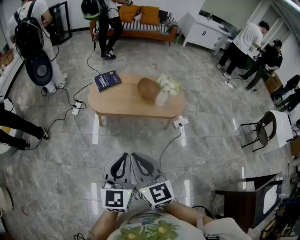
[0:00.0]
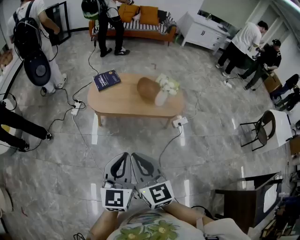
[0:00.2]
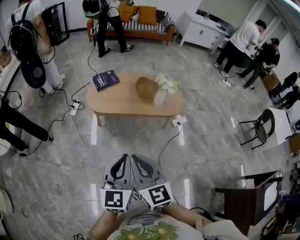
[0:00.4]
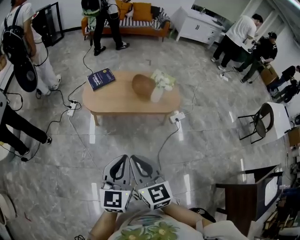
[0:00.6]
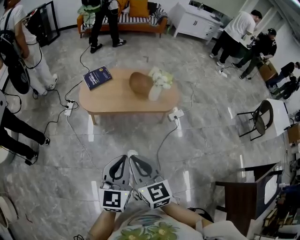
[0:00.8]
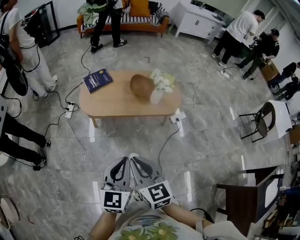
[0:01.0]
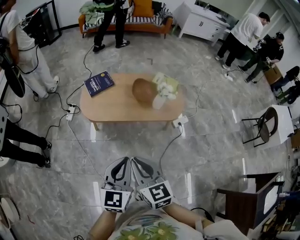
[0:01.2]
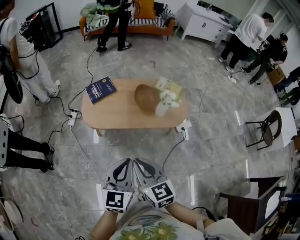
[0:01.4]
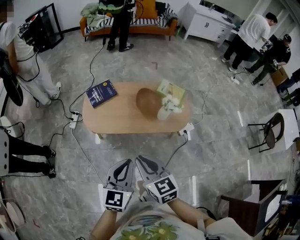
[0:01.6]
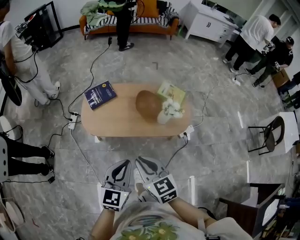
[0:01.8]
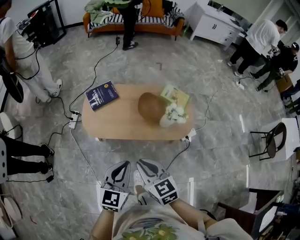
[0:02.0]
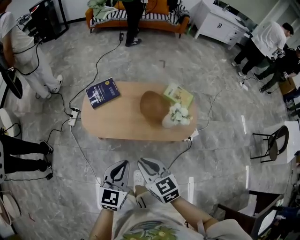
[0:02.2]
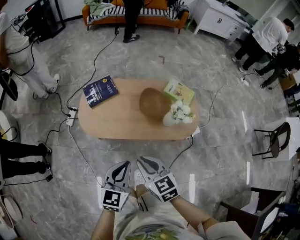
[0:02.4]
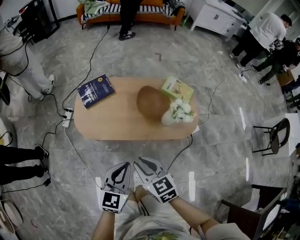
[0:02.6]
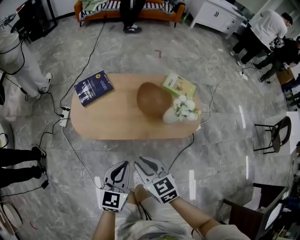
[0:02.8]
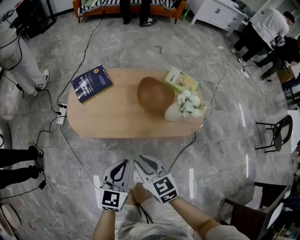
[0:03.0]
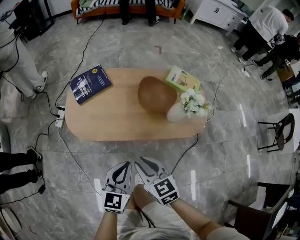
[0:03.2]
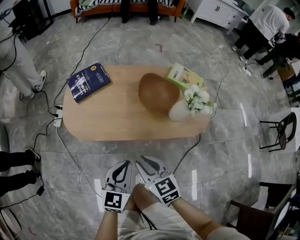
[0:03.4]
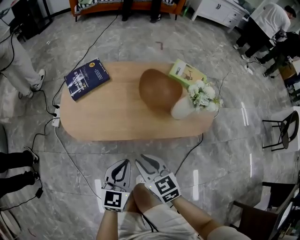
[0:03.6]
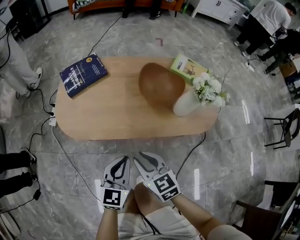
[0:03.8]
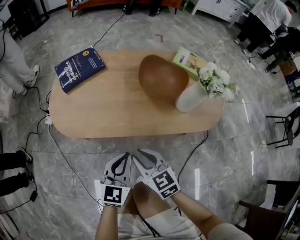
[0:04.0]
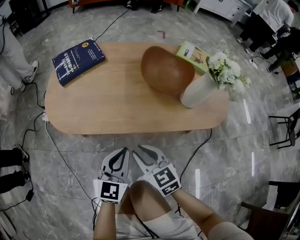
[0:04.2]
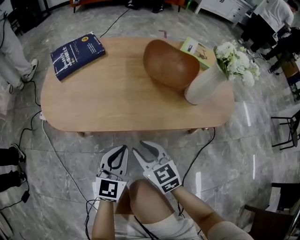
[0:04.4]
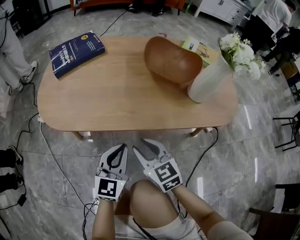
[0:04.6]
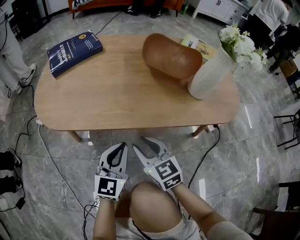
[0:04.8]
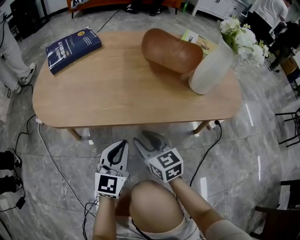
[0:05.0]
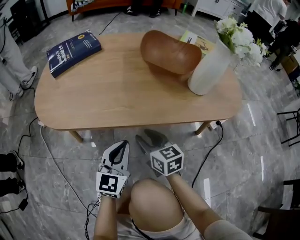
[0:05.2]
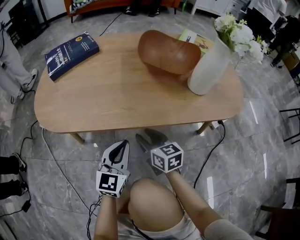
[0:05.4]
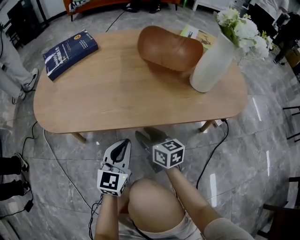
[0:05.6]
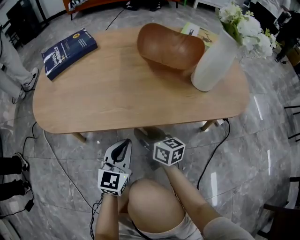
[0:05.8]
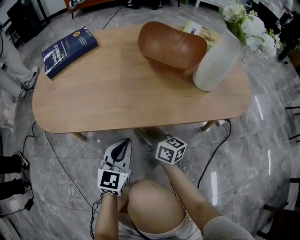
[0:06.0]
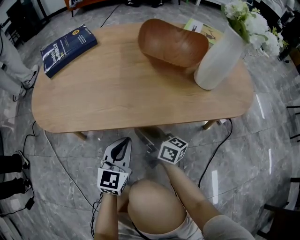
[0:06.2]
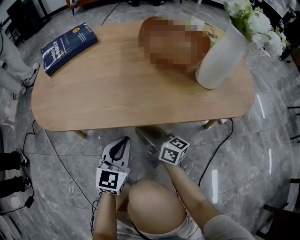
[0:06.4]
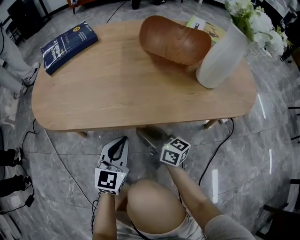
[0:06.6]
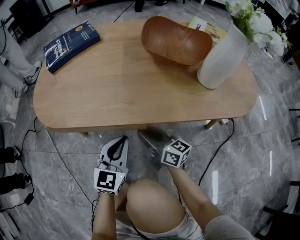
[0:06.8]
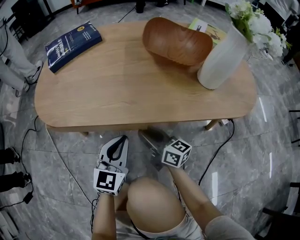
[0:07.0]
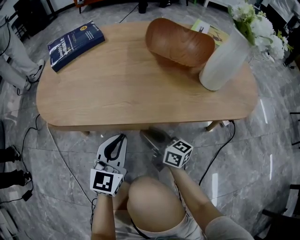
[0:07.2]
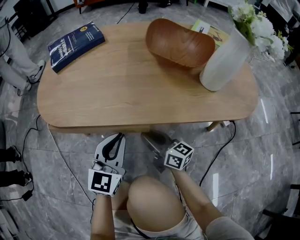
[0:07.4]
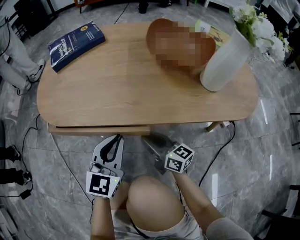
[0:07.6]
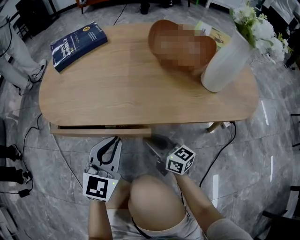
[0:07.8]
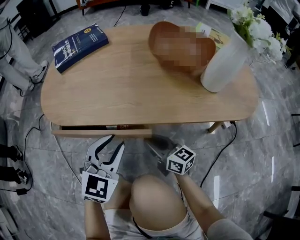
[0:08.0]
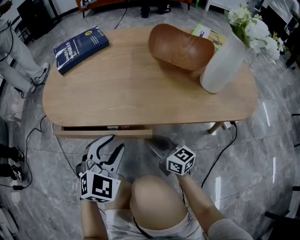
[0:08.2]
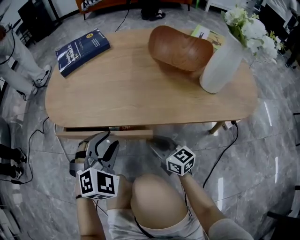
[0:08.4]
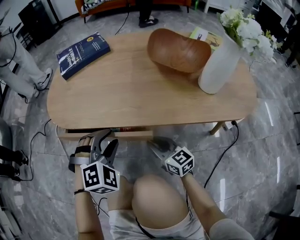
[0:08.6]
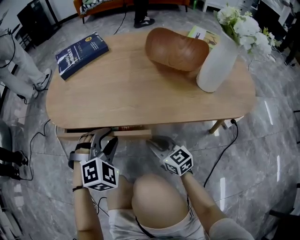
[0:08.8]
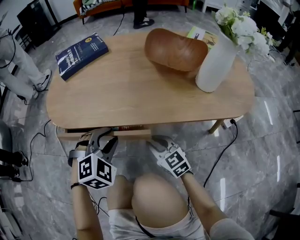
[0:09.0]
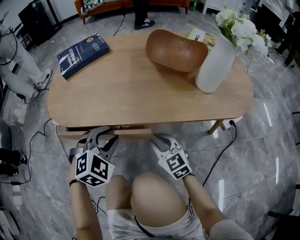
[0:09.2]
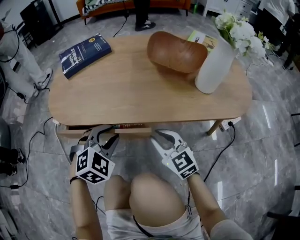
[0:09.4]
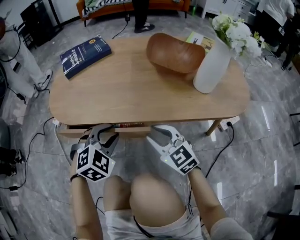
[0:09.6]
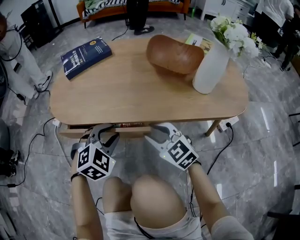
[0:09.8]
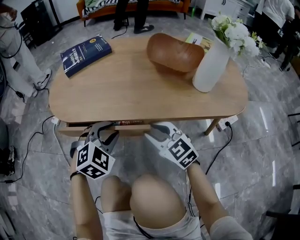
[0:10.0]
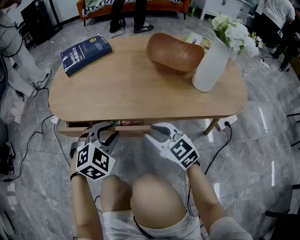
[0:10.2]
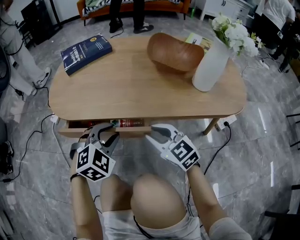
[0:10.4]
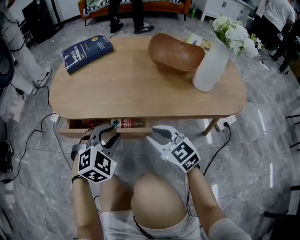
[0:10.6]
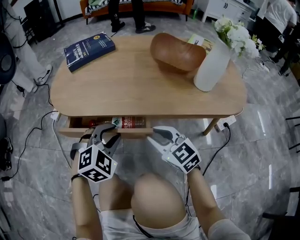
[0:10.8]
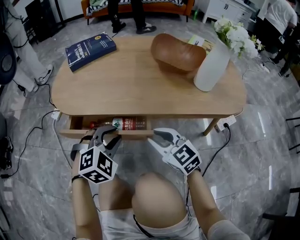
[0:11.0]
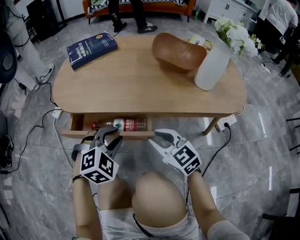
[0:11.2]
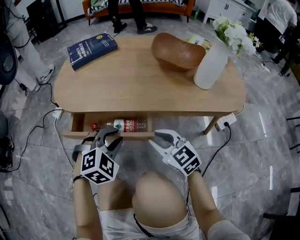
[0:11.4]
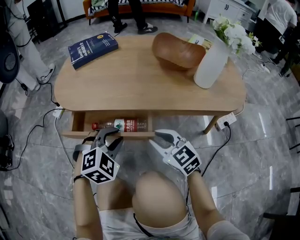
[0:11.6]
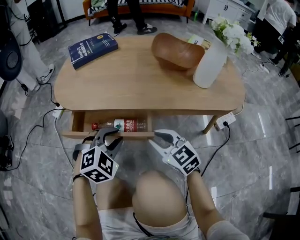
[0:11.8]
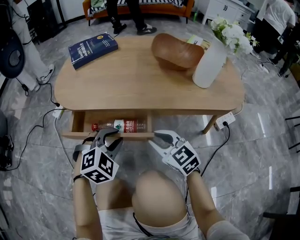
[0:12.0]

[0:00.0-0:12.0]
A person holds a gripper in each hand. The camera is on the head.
0:00.0 to 0:01.6: The left gripper goes approximately 20 cm forward, while the right gripper is displaced forward and downward by roughly 25 cm.
0:01.6 to 0:03.0: Both grippers travel together downward and forward, roughly 25 cm.
0:03.0 to 0:04.4: The grippers both shift downward by roughly 30 cm.
0:04.4 to 0:06.0: The left gripper goes roughly 10 cm downward. The right gripper is displaced downward and forward by roughly 15 cm, and turns by about 40 degrees.
0:06.0 to 0:07.6: The left gripper travels upward by approximately 5 cm.
0:07.6 to 0:09.0: The right gripper changes its angle by approximately 40 degrees, while the left gripper points its fingers some 30 degrees further downward, and opens up.
0:09.0 to 0:10.4: The right gripper moves upward, some 10 cm.
0:10.4 to 0:12.0: The left gripper travels backward by some 5 cm.

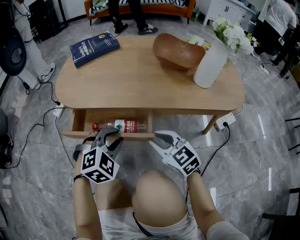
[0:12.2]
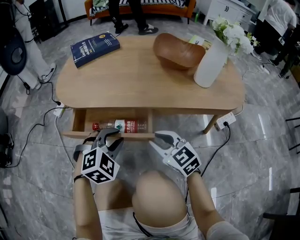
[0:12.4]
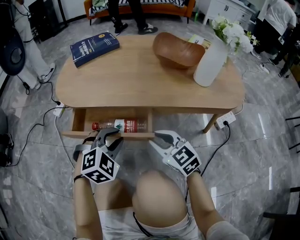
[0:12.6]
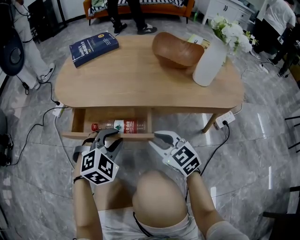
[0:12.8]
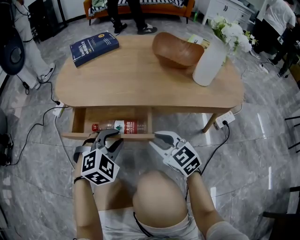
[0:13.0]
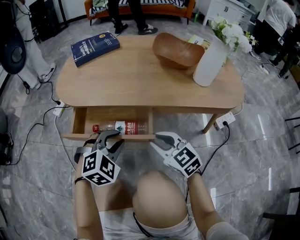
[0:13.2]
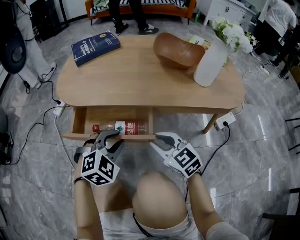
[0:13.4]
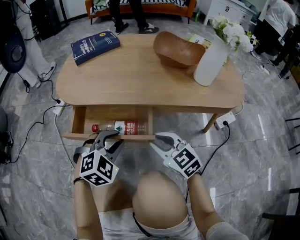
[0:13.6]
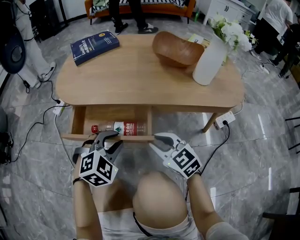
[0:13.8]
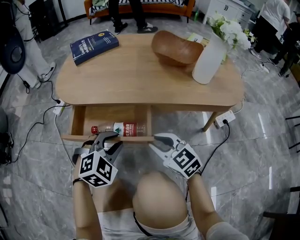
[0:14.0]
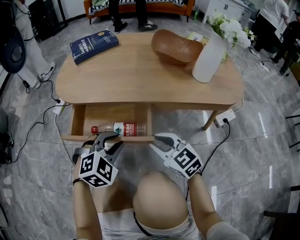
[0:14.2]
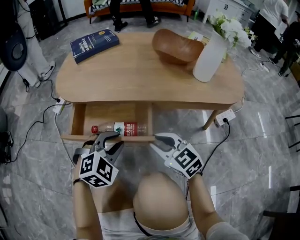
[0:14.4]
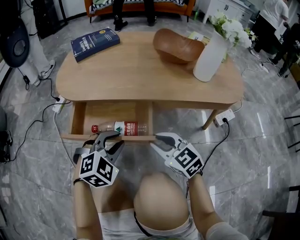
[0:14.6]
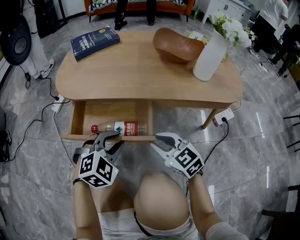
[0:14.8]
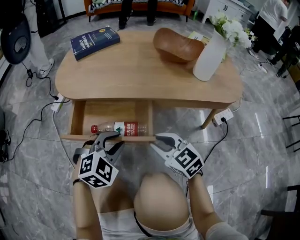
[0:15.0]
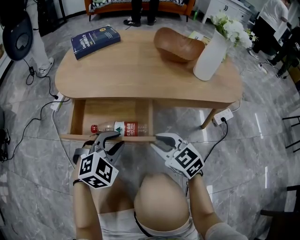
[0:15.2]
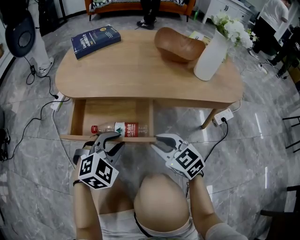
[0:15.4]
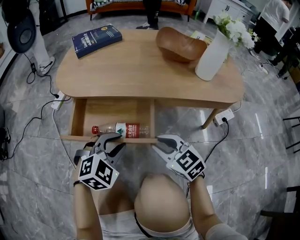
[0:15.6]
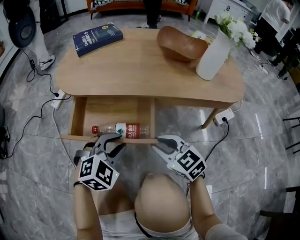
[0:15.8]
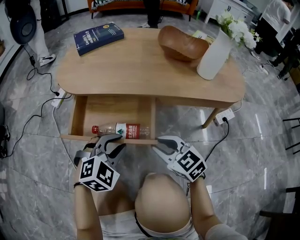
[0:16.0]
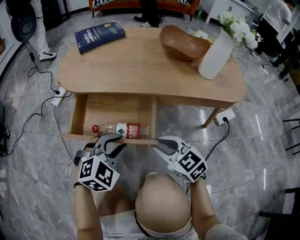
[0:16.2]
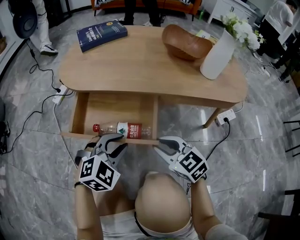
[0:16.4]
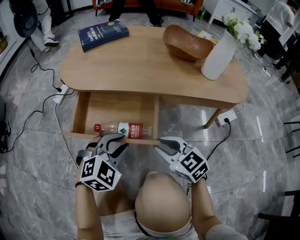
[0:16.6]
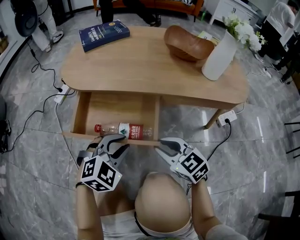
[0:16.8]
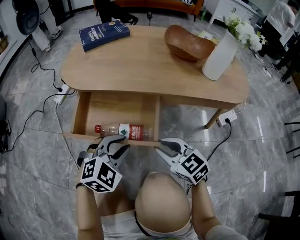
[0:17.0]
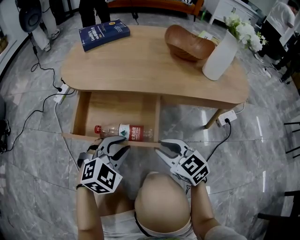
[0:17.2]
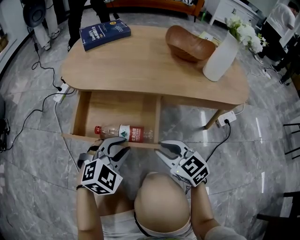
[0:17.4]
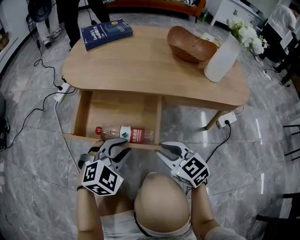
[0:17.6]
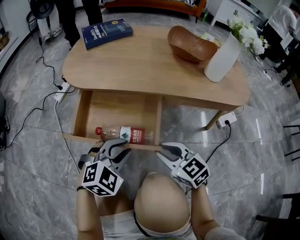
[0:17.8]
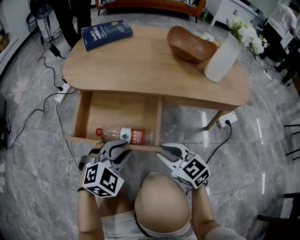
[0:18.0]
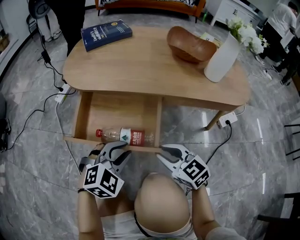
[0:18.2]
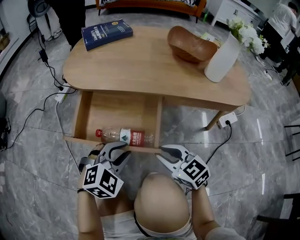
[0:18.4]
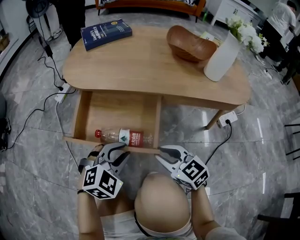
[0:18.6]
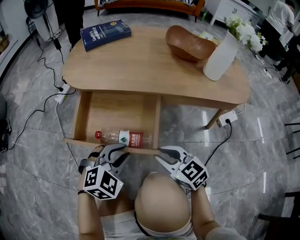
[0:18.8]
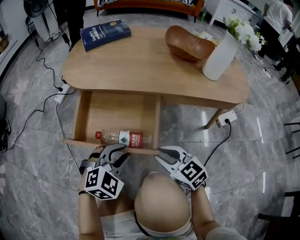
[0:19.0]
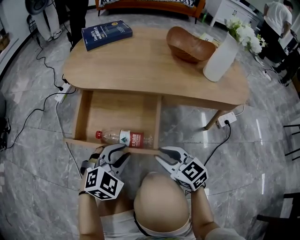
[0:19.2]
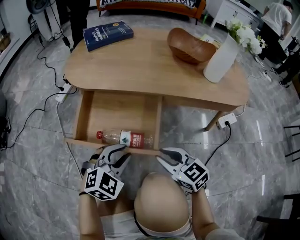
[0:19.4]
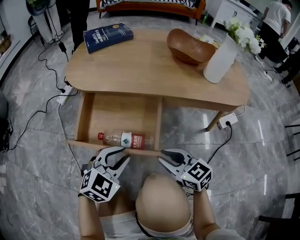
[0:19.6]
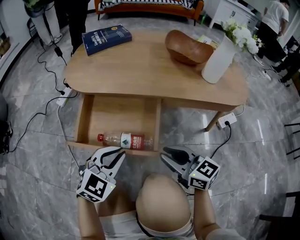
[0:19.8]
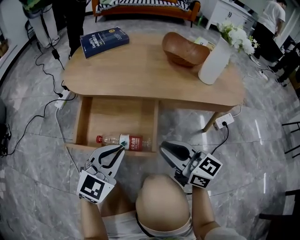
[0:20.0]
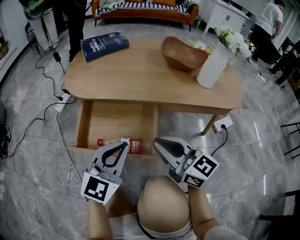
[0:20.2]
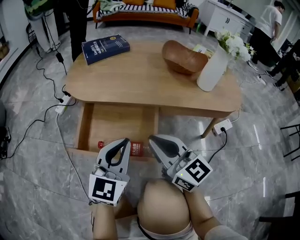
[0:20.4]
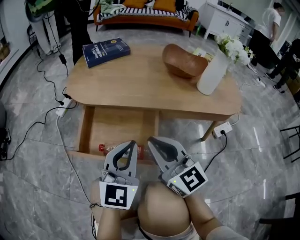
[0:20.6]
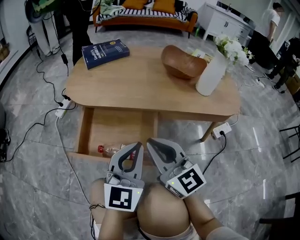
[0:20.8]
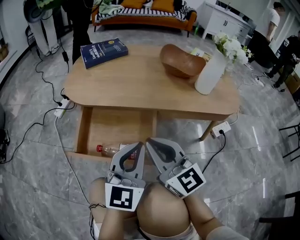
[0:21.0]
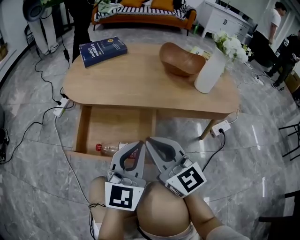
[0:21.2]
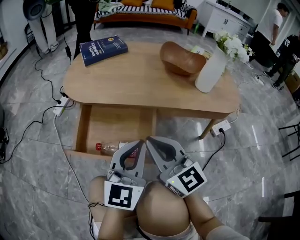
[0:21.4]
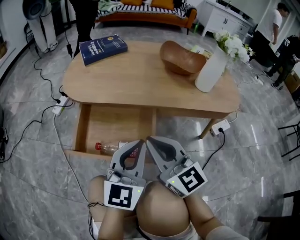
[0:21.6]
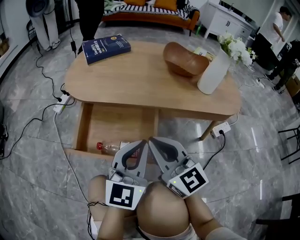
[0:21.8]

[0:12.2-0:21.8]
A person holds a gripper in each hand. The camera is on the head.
0:12.2 to 0:15.4: The grippers stay close to where they were, moving slightly.
0:15.4 to 0:18.6: The grippers move only a little.
0:18.6 to 0:20.2: Both grippers move upward, about 10 cm. The right gripper changes its angle by some 30 degrees; the left gripper tilts its fingers some 30 degrees upward, and closes its fingers.
0:20.2 to 0:21.8: The left gripper shifts by roughly 5 cm.

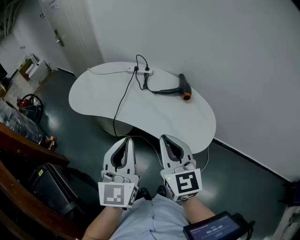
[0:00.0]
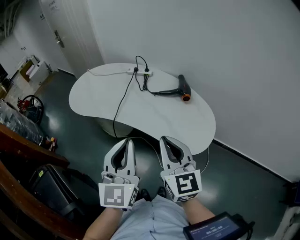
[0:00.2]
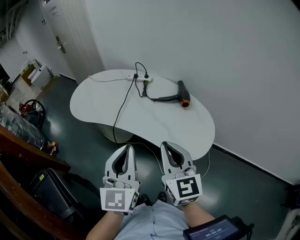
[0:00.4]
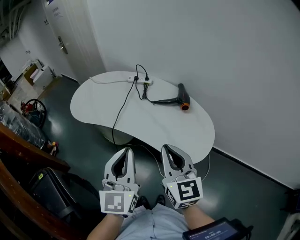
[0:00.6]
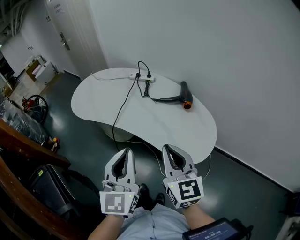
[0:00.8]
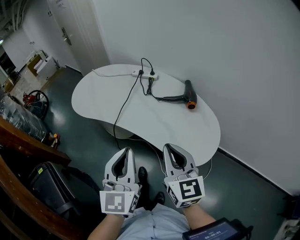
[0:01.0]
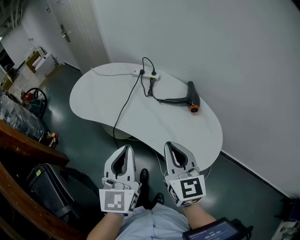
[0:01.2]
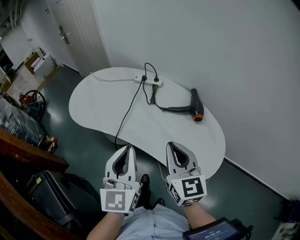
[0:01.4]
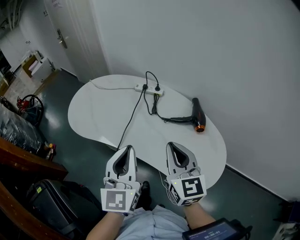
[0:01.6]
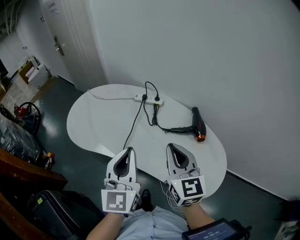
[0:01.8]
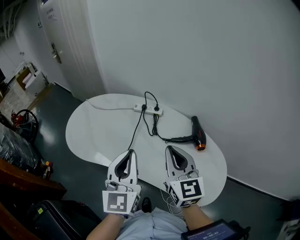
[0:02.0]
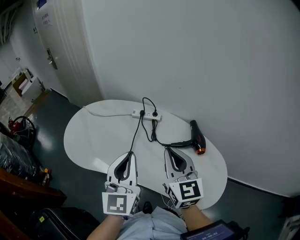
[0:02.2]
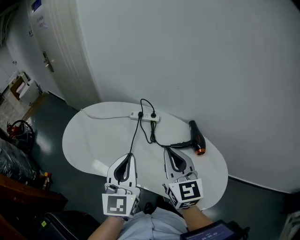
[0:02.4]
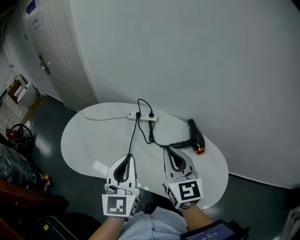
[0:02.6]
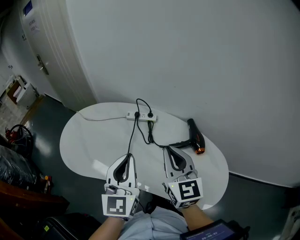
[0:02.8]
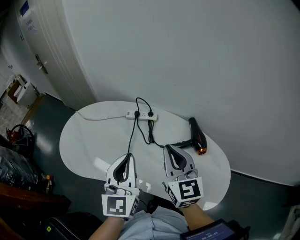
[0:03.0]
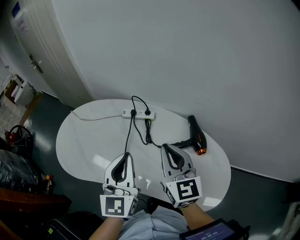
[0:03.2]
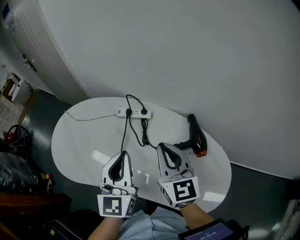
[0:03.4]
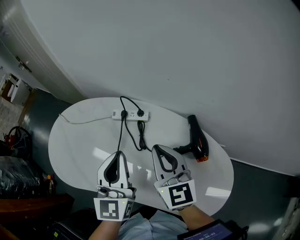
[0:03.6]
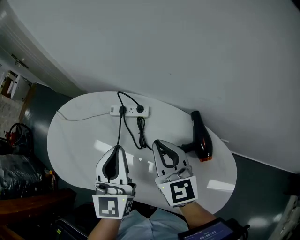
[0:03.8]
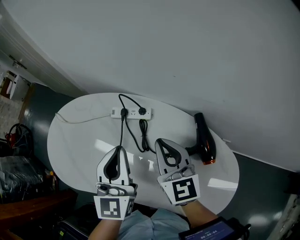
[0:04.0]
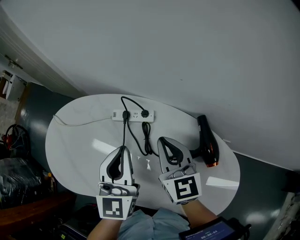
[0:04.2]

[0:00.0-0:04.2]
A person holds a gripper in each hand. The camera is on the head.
0:00.0 to 0:01.4: The grippers both shift forward by roughly 10 cm.
0:01.4 to 0:02.8: Both grippers travel together forward, about 15 cm.
0:02.8 to 0:04.2: The left gripper moves forward, some 15 cm, while the right gripper shifts about 20 cm forward and downward.
